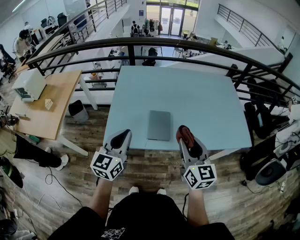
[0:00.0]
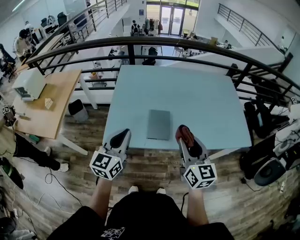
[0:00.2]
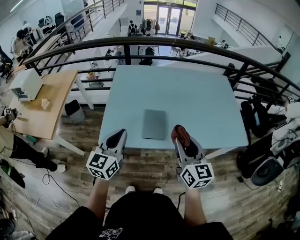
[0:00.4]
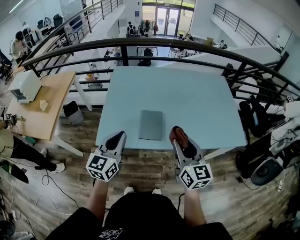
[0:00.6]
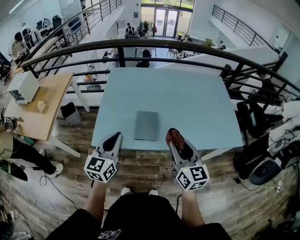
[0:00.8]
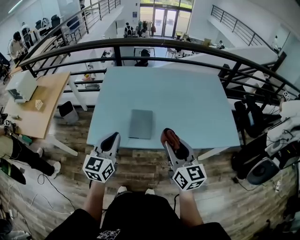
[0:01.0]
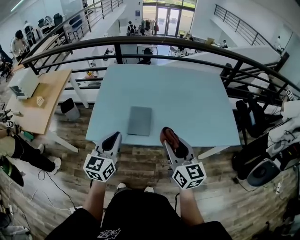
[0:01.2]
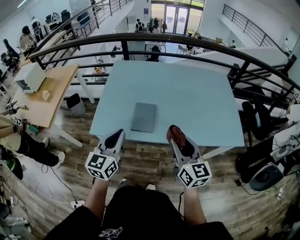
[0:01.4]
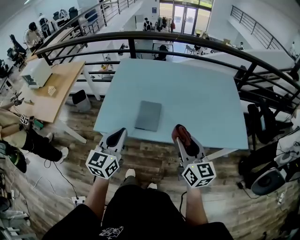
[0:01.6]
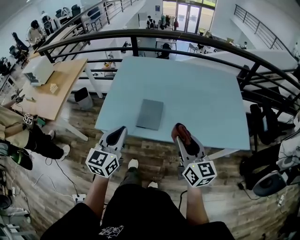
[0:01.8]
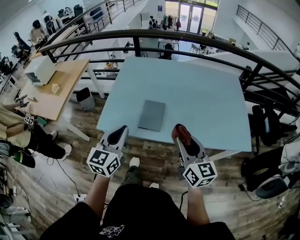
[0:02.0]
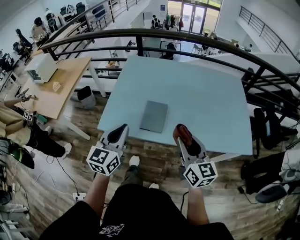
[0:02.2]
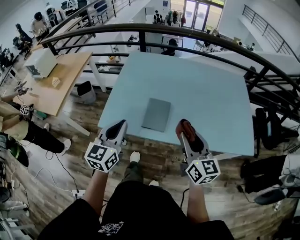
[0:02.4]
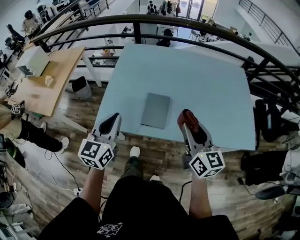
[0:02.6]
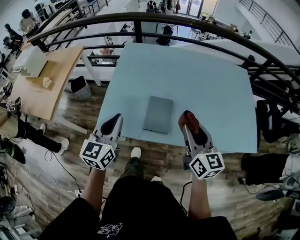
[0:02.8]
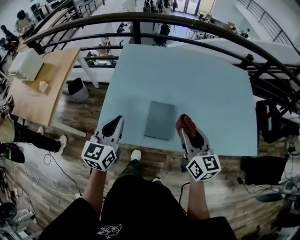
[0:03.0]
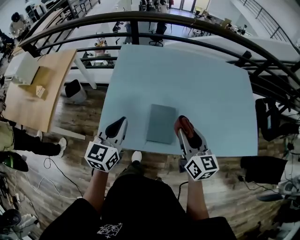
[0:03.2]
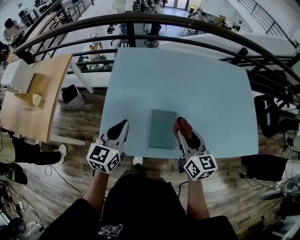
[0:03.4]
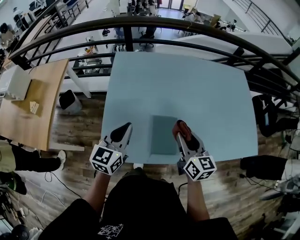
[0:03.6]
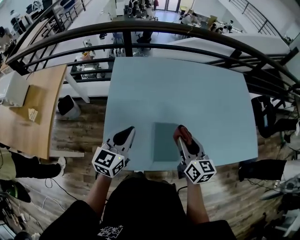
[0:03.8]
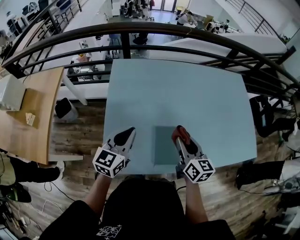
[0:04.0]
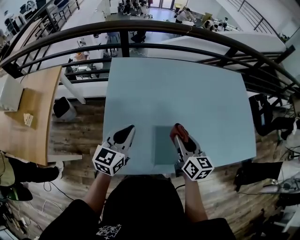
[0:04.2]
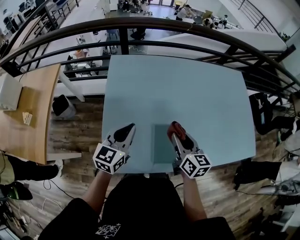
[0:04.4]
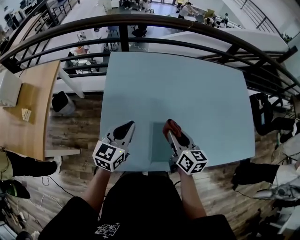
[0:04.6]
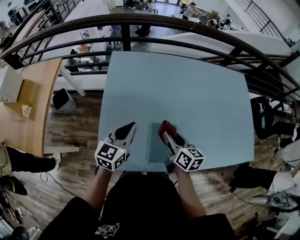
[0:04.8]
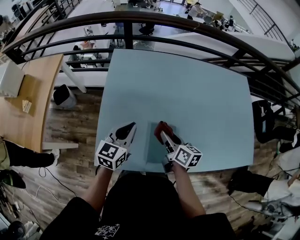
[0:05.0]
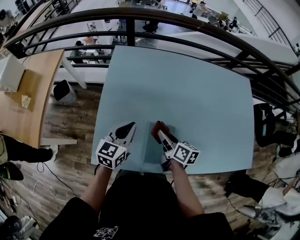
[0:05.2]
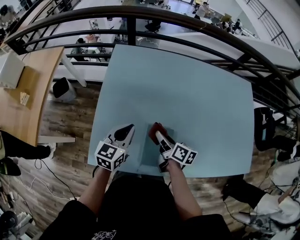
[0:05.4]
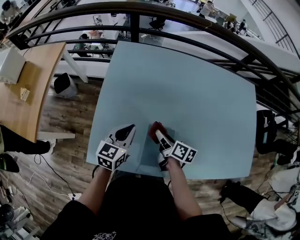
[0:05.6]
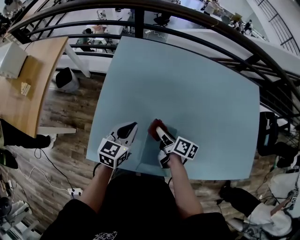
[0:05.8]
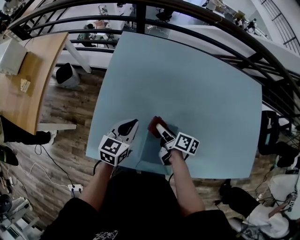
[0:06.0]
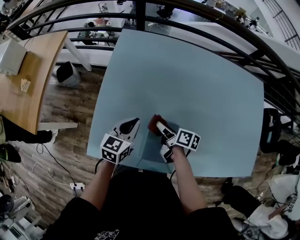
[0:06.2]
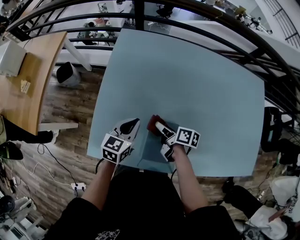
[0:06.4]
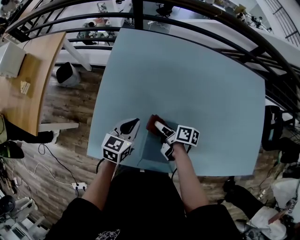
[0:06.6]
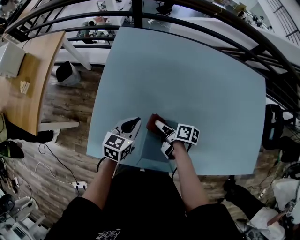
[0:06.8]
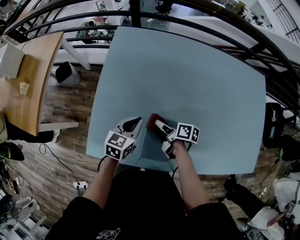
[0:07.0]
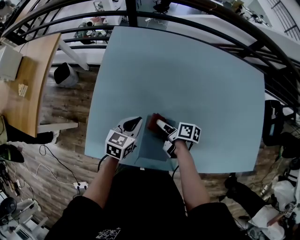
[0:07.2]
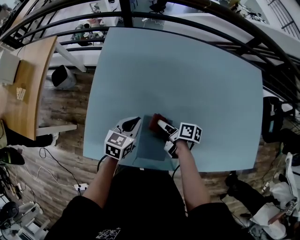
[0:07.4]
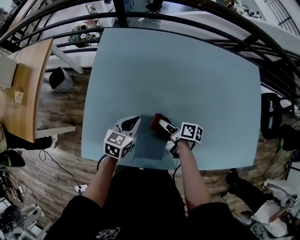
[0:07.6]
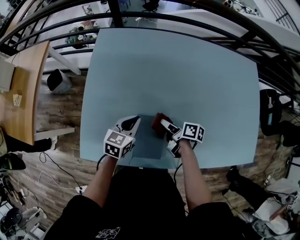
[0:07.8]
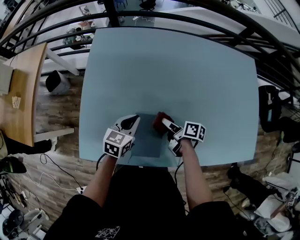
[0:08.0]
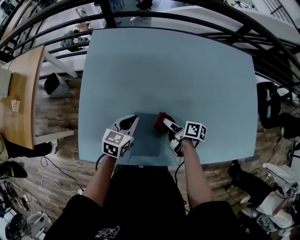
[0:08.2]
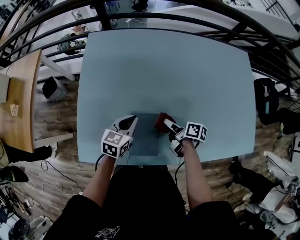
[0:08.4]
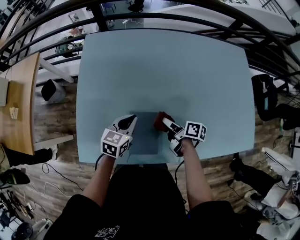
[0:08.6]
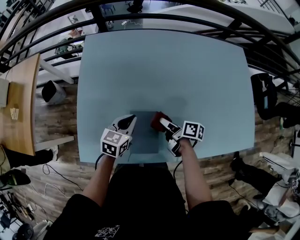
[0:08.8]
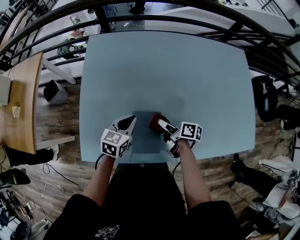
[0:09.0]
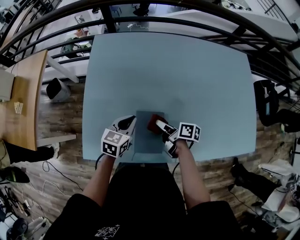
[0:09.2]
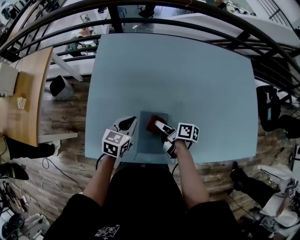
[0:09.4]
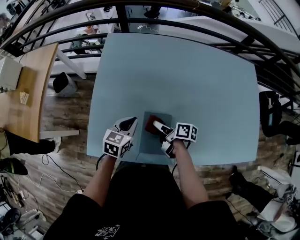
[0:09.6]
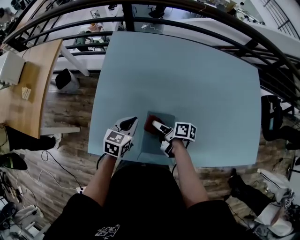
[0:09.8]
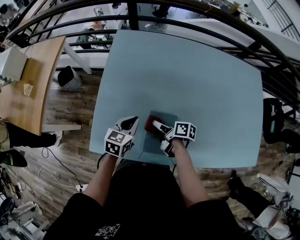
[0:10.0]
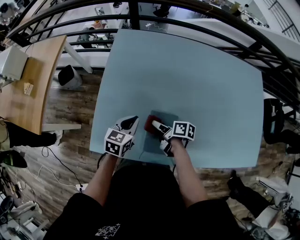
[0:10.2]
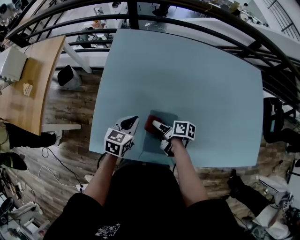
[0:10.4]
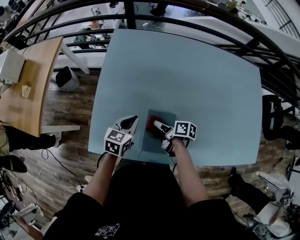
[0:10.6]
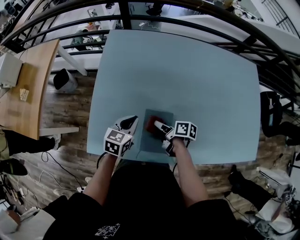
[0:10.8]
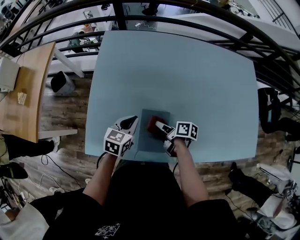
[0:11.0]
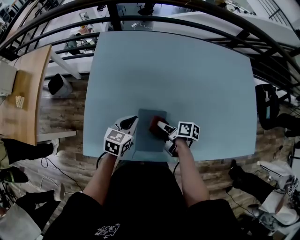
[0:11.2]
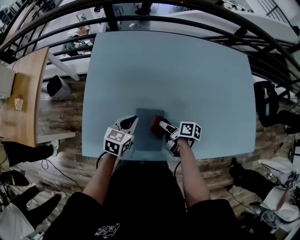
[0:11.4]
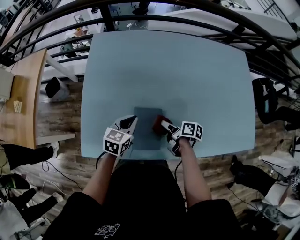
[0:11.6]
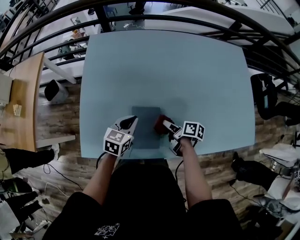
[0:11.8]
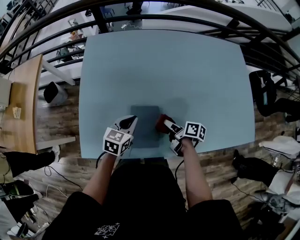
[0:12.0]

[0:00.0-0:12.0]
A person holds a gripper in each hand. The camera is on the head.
0:00.0 to 0:01.6: The right gripper goes approximately 10 cm to the right, while the left gripper shifts roughly 10 cm to the right and backward.
0:01.6 to 0:03.0: The grippers both shift forward and to the left by approximately 20 cm.
0:03.0 to 0:04.4: The left gripper goes roughly 15 cm forward. The right gripper is displaced forward, to the left and downward by roughly 20 cm.
0:04.4 to 0:06.0: The grippers both shift downward by approximately 15 cm. The right gripper changes its angle by approximately 50 degrees.
0:06.0 to 0:07.6: The left gripper travels to the right and downward by about 10 cm, while the right gripper heads to the right, covering roughly 5 cm.
0:09.0 to 0:10.4: Both grippers move to the left, some 10 cm.
0:10.4 to 0:12.0: The right gripper heads to the right, covering roughly 15 cm, while the left gripper shifts some 10 cm to the right.

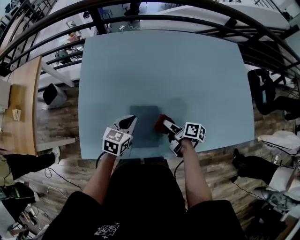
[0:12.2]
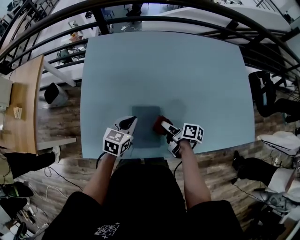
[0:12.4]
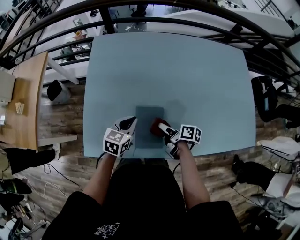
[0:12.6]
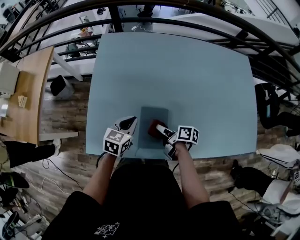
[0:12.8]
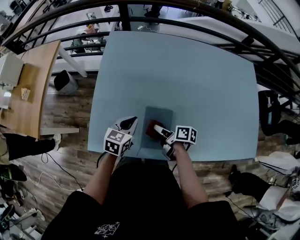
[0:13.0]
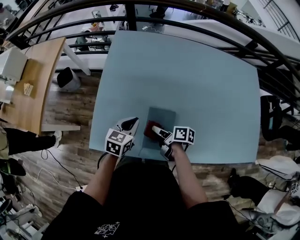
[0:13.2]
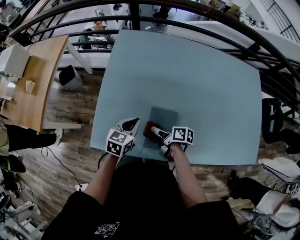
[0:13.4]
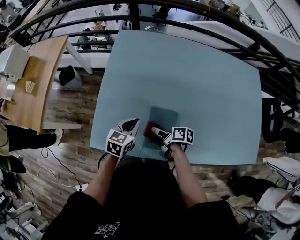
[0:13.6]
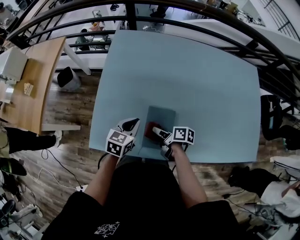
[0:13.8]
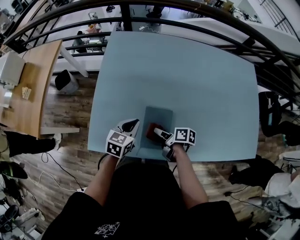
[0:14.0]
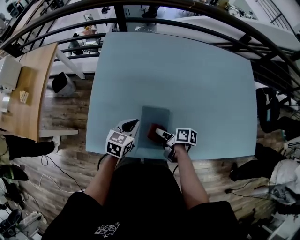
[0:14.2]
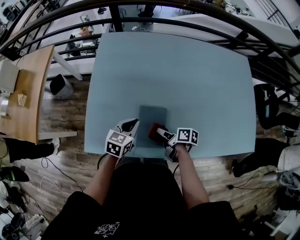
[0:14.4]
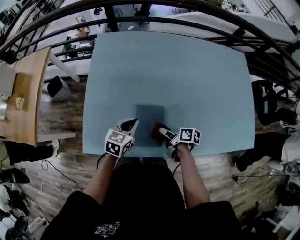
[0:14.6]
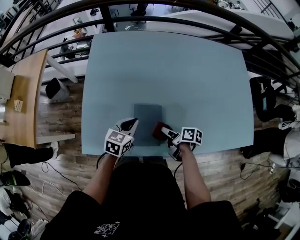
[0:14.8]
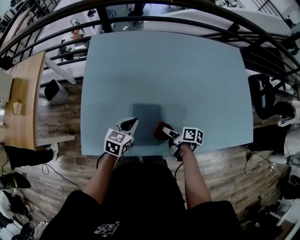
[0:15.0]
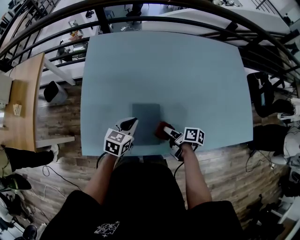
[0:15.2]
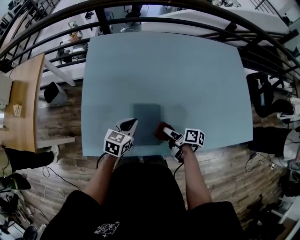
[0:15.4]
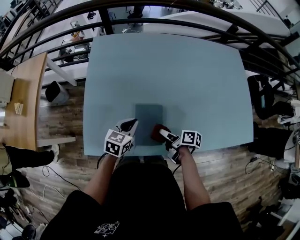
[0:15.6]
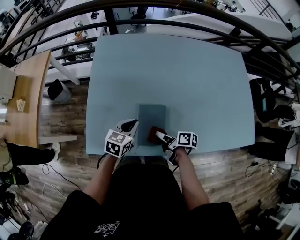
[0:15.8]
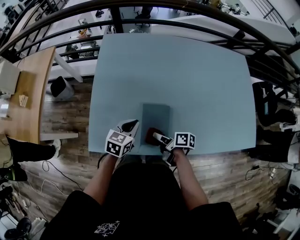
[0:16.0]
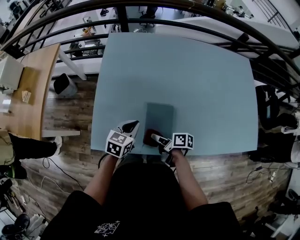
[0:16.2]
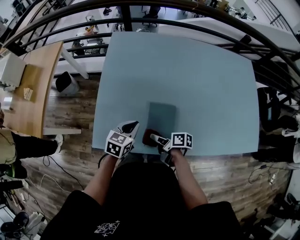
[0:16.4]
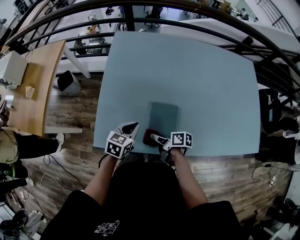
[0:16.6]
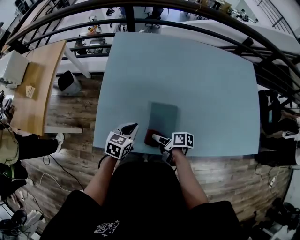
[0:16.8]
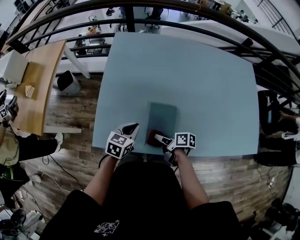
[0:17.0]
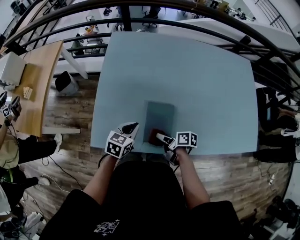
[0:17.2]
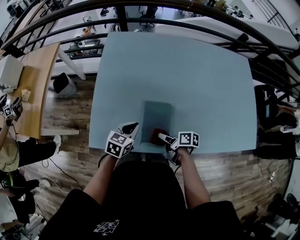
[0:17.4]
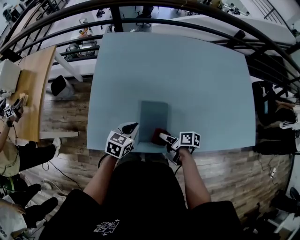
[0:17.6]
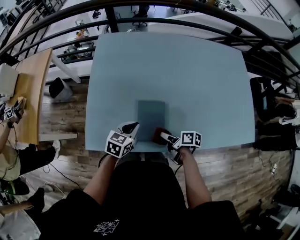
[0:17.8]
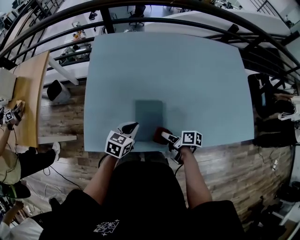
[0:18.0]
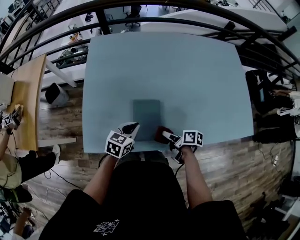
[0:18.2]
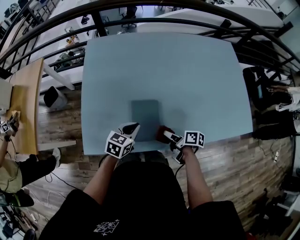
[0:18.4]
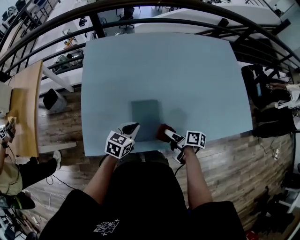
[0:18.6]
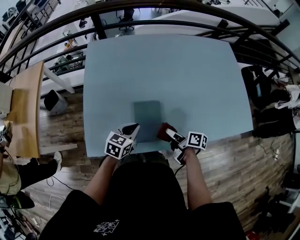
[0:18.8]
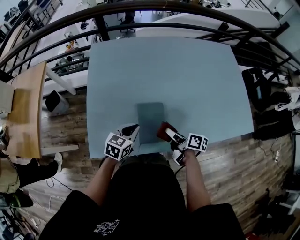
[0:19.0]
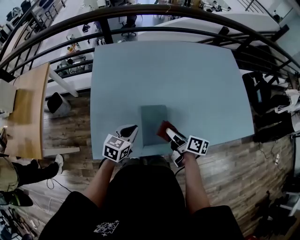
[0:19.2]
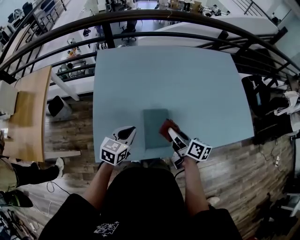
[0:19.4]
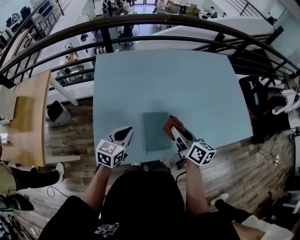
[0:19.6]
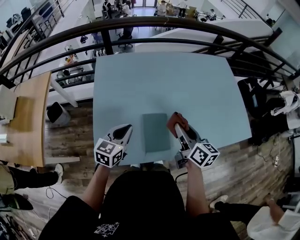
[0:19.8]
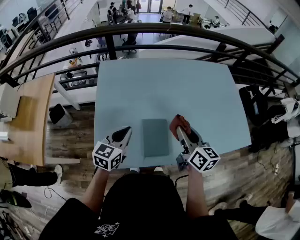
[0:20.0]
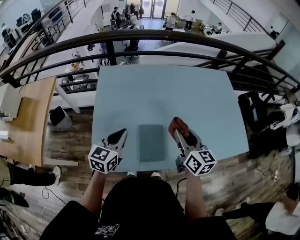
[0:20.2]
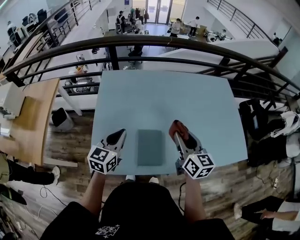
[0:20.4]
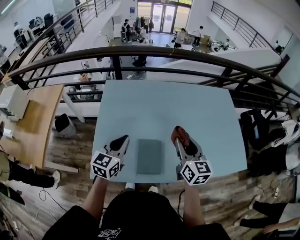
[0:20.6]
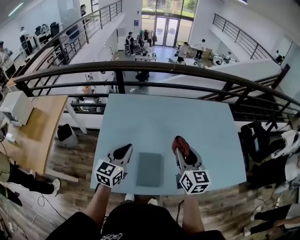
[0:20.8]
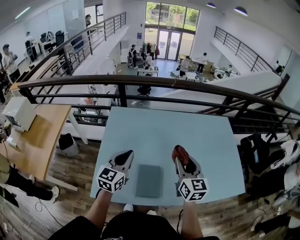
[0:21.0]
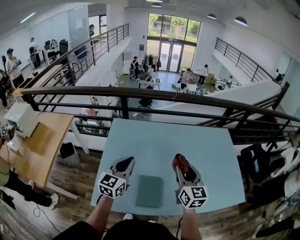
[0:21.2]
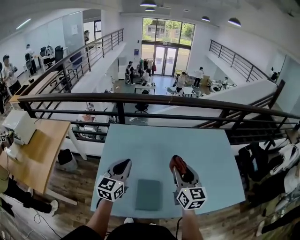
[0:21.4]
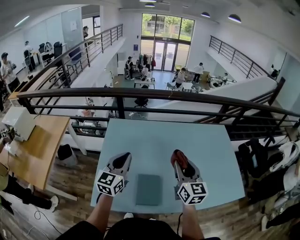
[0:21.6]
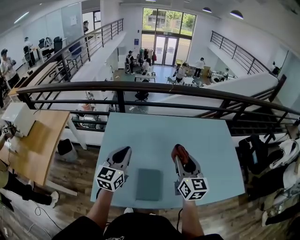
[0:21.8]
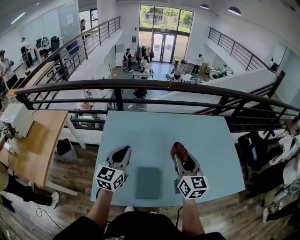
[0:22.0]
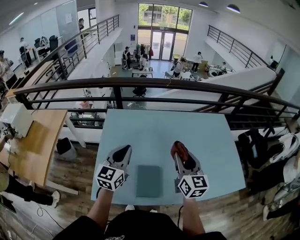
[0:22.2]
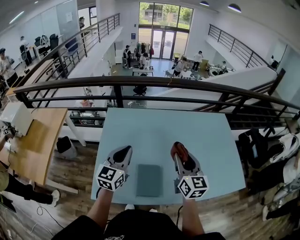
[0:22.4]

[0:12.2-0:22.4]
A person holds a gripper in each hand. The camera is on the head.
0:12.2 to 0:13.6: The right gripper heads to the left, covering about 15 cm. Meanwhile the left gripper travels to the left by some 10 cm.
0:13.6 to 0:15.2: The right gripper goes approximately 15 cm to the right. The left gripper shifts approximately 5 cm to the right.
0:15.2 to 0:16.6: The right gripper moves to the left, roughly 15 cm. Meanwhile the left gripper is displaced to the left by roughly 10 cm.
0:16.6 to 0:18.0: The left gripper goes about 5 cm to the right, while the right gripper is displaced to the right by approximately 10 cm.
0:18.0 to 0:19.4: The left gripper goes roughly 10 cm upward and to the left; the right gripper is displaced upward by approximately 15 cm, and changes its angle by roughly 30 degrees.
0:19.4 to 0:21.0: Both grippers travel together upward, approximately 20 cm. The right gripper rotates around the line of its fingers by about 50 degrees, counterclockwise from behind, while the left gripper turns by roughly 30 degrees.
0:21.0 to 0:22.4: There are only small adjustments of the grippers.

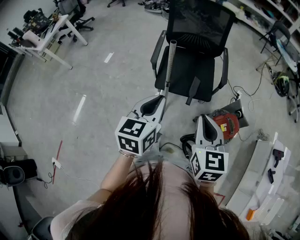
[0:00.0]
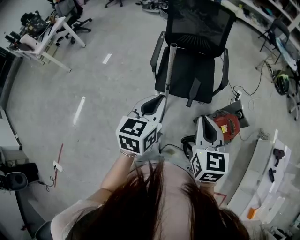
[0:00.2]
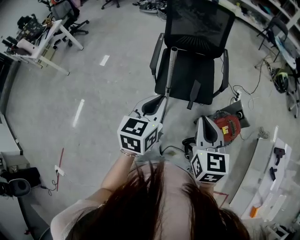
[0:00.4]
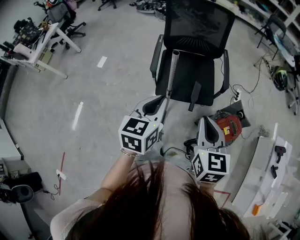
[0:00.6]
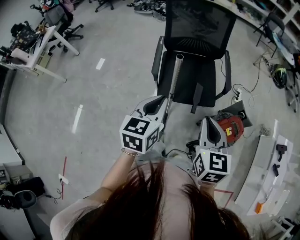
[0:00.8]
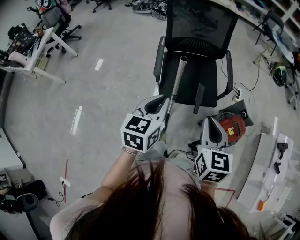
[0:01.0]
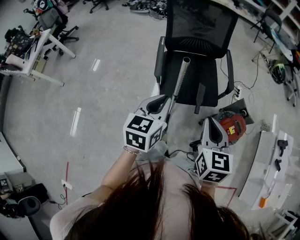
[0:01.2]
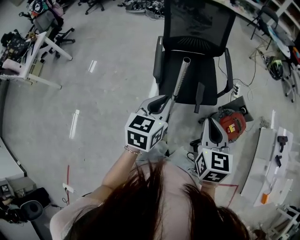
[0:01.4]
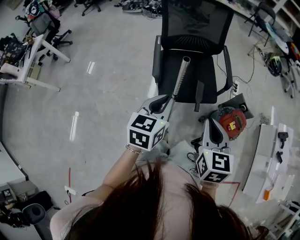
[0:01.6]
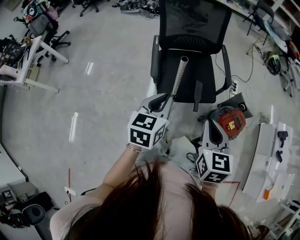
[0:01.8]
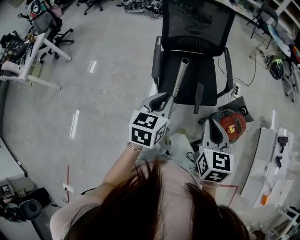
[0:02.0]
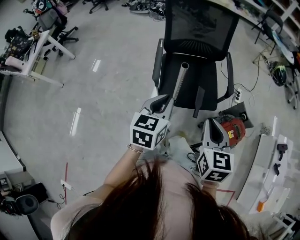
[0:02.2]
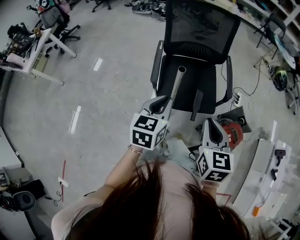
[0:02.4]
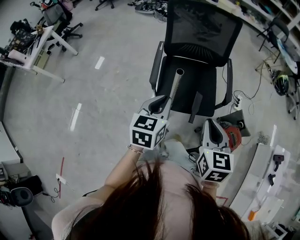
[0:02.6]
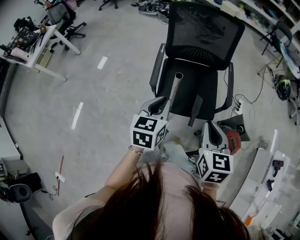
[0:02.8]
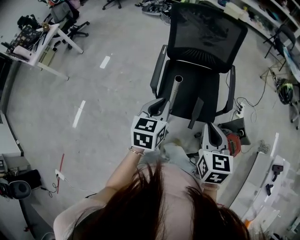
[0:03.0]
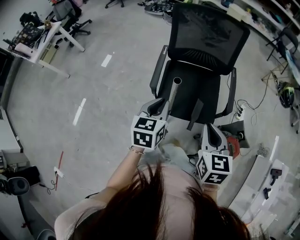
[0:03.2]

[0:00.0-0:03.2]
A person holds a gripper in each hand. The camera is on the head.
0:00.0 to 0:01.6: The right gripper shifts approximately 15 cm to the left and forward. Meanwhile the left gripper moves forward and to the left, approximately 20 cm.
0:01.6 to 0:03.2: The right gripper is displaced forward and to the right by approximately 15 cm. Meanwhile the left gripper heads forward, covering about 10 cm.
